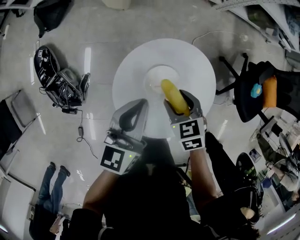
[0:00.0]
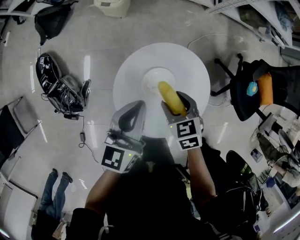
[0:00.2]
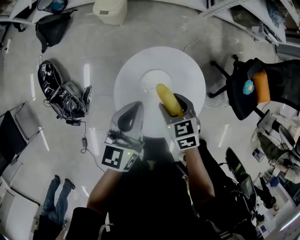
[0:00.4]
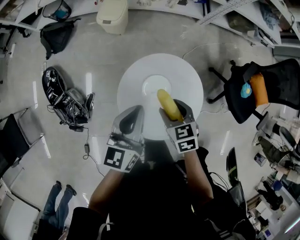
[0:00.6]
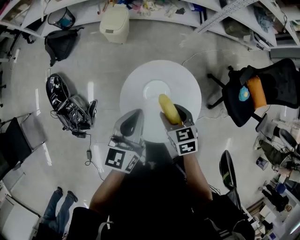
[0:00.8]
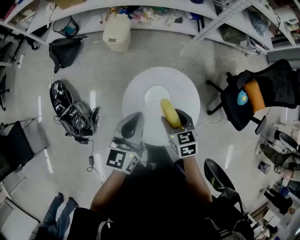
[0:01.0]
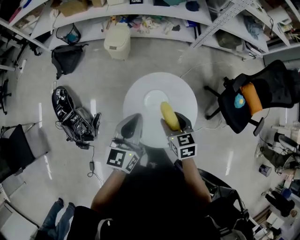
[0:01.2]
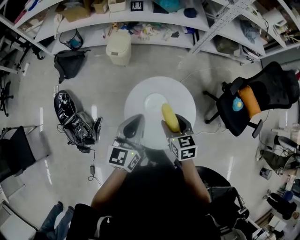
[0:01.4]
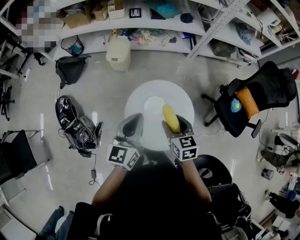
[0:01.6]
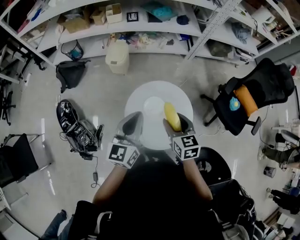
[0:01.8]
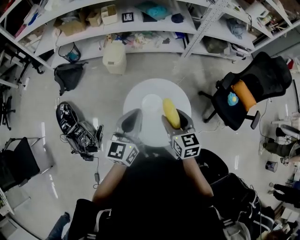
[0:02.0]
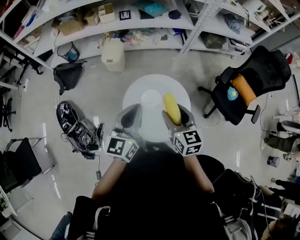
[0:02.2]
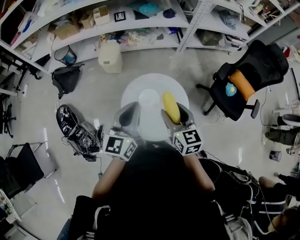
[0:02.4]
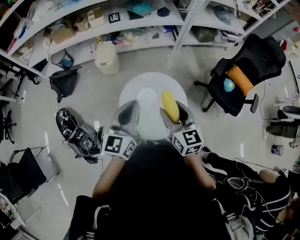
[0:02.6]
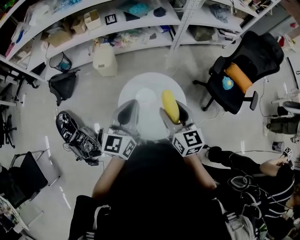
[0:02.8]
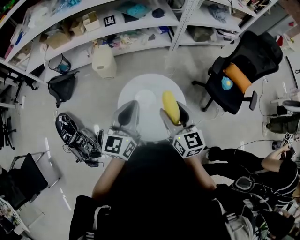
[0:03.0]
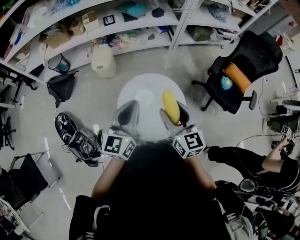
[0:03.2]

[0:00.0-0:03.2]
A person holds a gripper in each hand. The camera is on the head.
0.0 to 1.6 s: The two grippers go roughly 20 cm upward. The right gripper changes its angle by some 30 degrees.
1.6 to 3.2 s: The left gripper goes some 5 cm upward. Meanwhile the right gripper shifts roughly 10 cm upward, and turns by about 30 degrees.

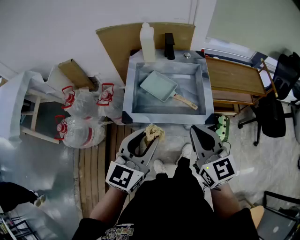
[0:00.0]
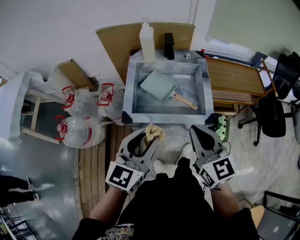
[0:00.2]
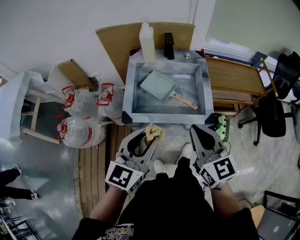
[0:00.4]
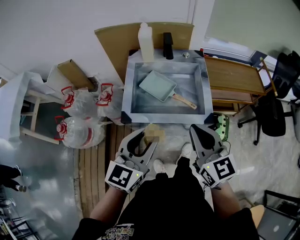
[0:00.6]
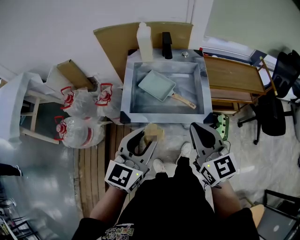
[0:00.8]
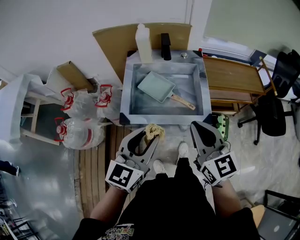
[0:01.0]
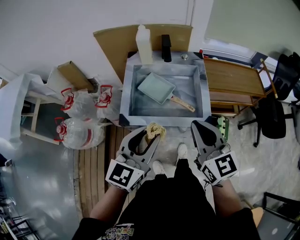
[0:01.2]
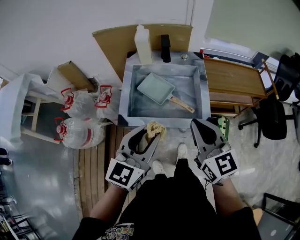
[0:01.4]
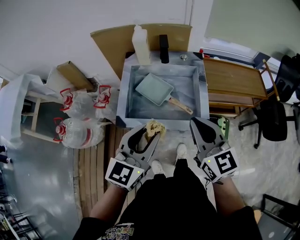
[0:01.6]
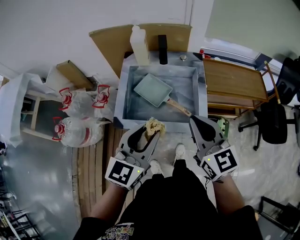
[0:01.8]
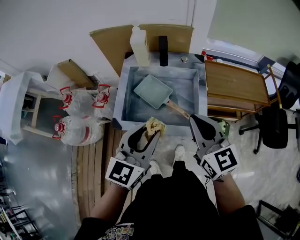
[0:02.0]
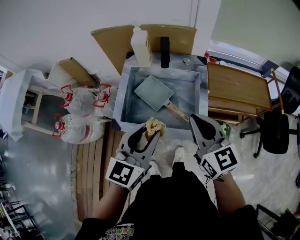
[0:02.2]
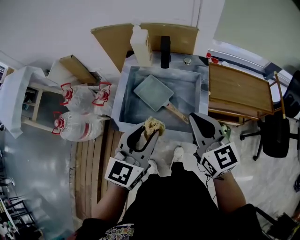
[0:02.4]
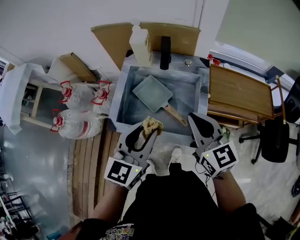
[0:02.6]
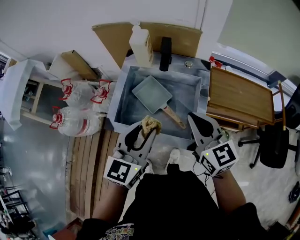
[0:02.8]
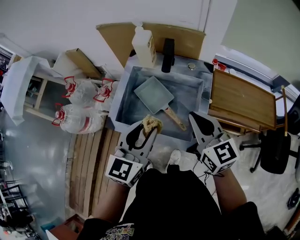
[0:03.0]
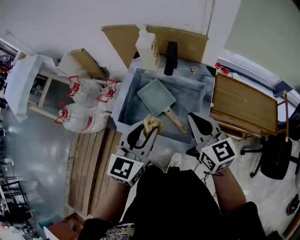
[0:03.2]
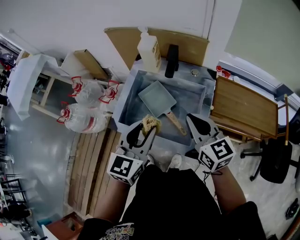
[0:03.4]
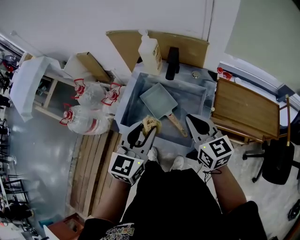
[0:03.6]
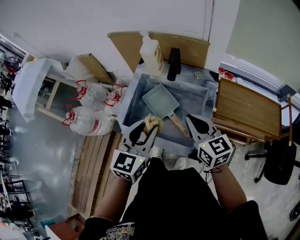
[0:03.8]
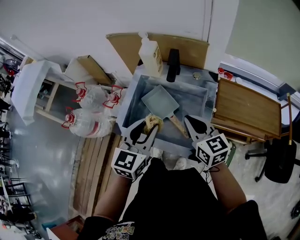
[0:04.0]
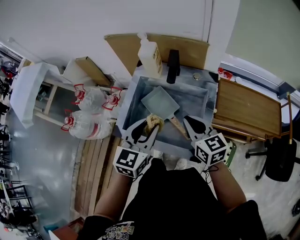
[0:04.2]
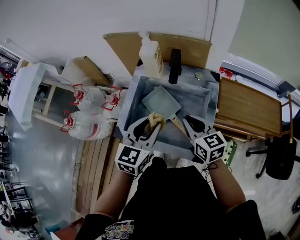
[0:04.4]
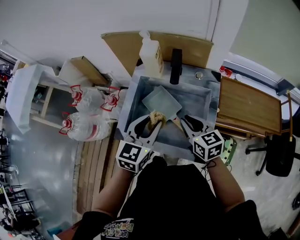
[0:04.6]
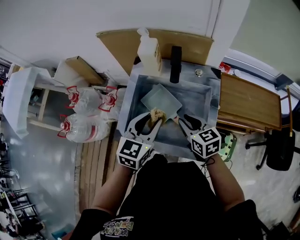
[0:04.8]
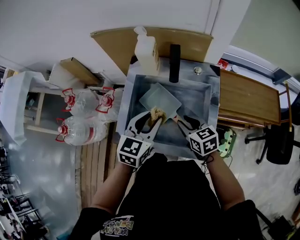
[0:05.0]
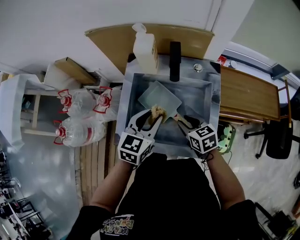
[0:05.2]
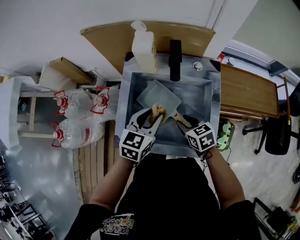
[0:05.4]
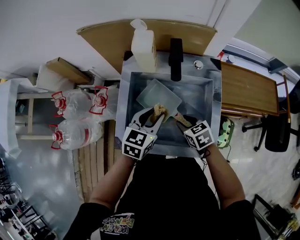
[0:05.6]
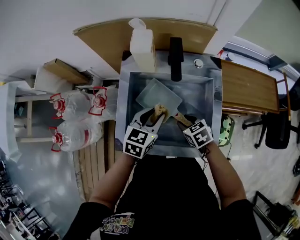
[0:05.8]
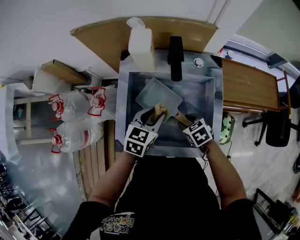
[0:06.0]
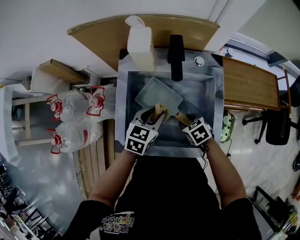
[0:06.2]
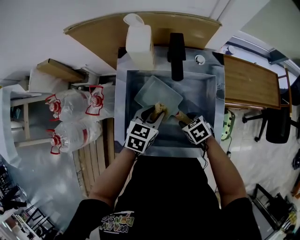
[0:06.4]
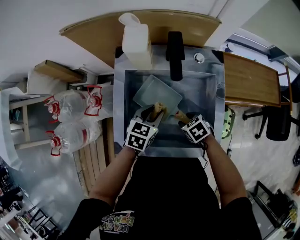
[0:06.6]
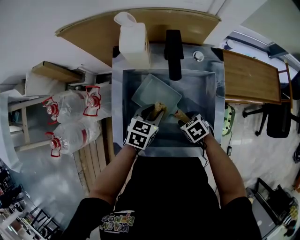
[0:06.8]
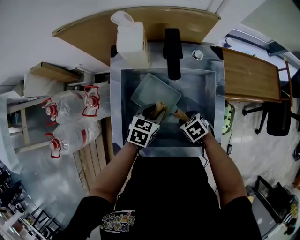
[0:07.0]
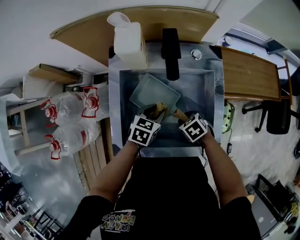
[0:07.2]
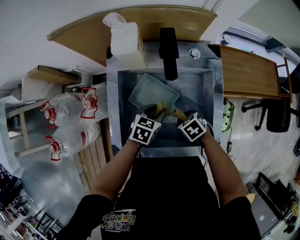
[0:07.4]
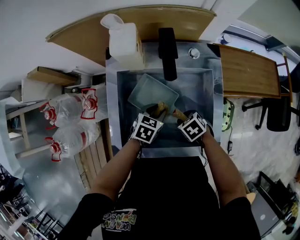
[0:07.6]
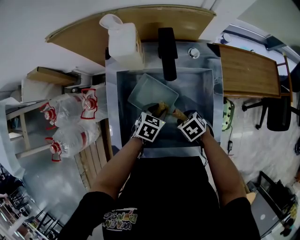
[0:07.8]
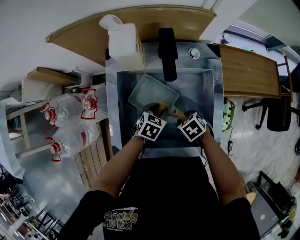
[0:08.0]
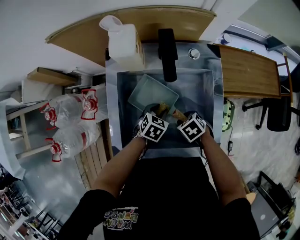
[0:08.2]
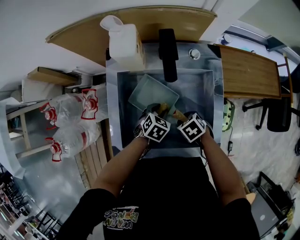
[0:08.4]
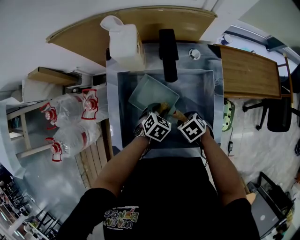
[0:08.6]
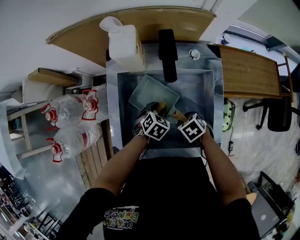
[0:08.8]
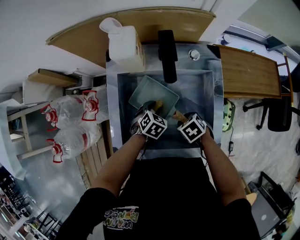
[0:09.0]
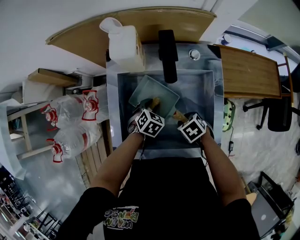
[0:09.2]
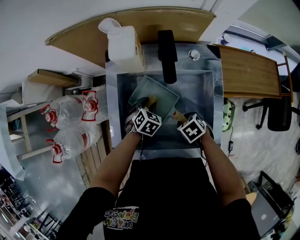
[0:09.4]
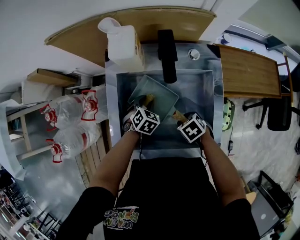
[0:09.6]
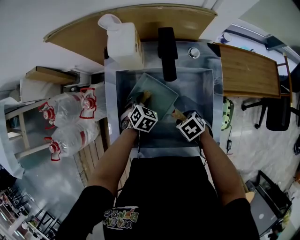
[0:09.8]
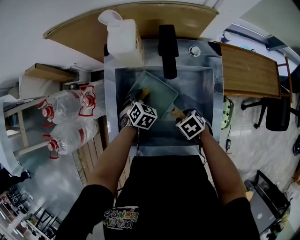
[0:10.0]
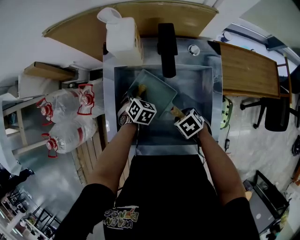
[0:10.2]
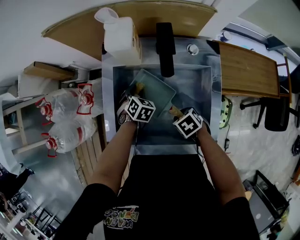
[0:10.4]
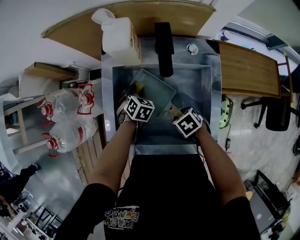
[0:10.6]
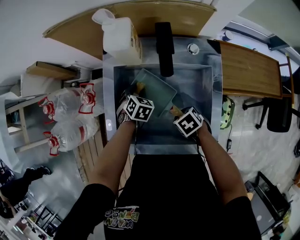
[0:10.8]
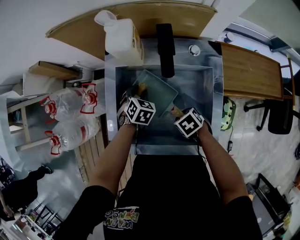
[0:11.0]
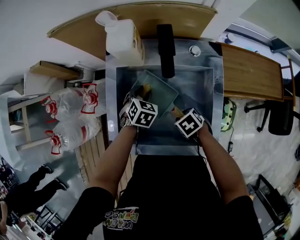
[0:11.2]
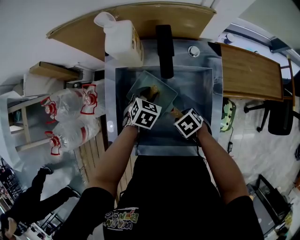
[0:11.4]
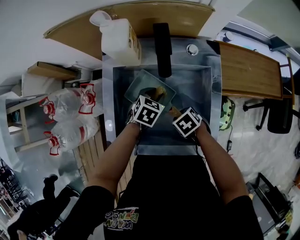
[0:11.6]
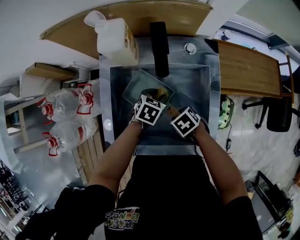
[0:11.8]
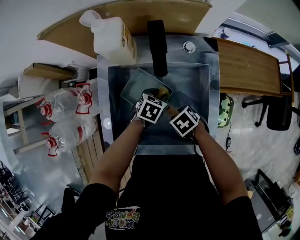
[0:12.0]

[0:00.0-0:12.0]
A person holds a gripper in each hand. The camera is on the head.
0.0 to 1.6 s: The left gripper changes place by about 5 cm; the right gripper moves forward, approximately 5 cm.
1.6 to 3.0 s: The two grippers go some 15 cm forward and to the right.
3.0 to 4.4 s: The right gripper shifts about 10 cm downward and forward; the left gripper travels forward by approximately 5 cm.
4.4 to 6.0 s: The left gripper heads downward and forward, covering approximately 20 cm, and rotates roughly 30 degrees. Meanwhile the right gripper heads downward, covering roughly 20 cm, tips its fingers downward by approximately 40 degrees, and opens its fingers.
6.0 to 7.6 s: The right gripper moves downward, some 5 cm. The left gripper moves downward, approximately 10 cm.
7.6 to 9.0 s: The left gripper rotates some 20 degrees.
9.0 to 10.4 s: The left gripper ends up roughly 10 cm from where it was.
10.4 to 12.0 s: The left gripper shifts by some 15 cm, and changes its angle by about 30 degrees.

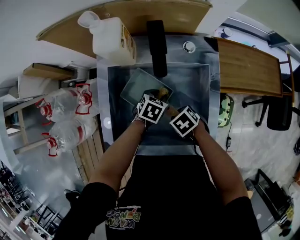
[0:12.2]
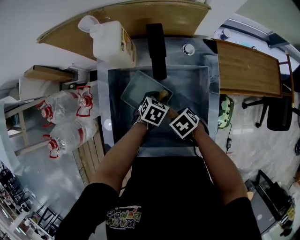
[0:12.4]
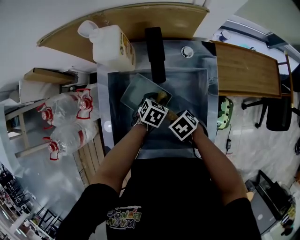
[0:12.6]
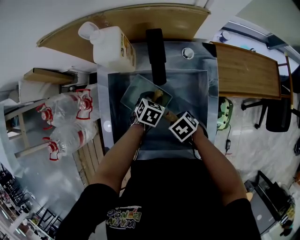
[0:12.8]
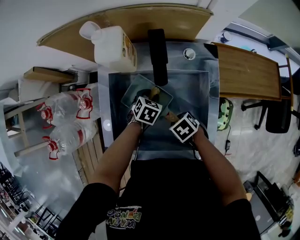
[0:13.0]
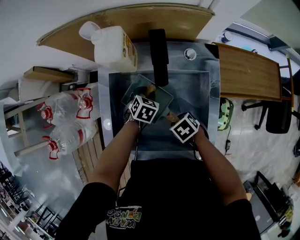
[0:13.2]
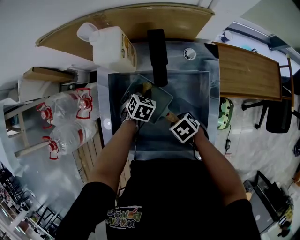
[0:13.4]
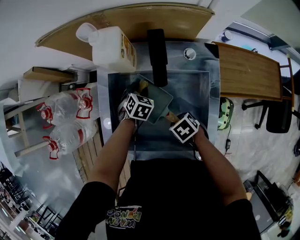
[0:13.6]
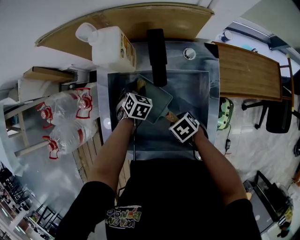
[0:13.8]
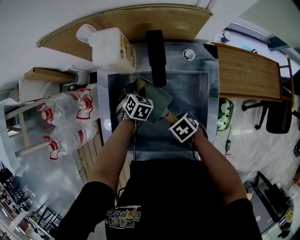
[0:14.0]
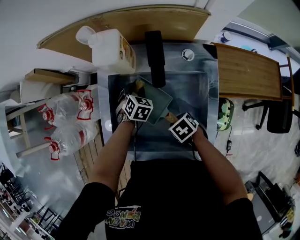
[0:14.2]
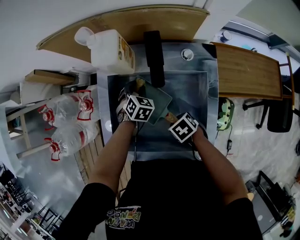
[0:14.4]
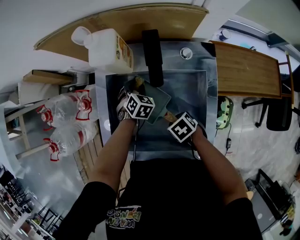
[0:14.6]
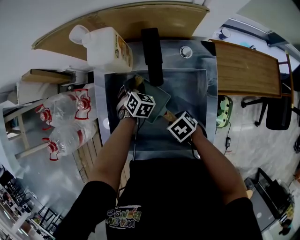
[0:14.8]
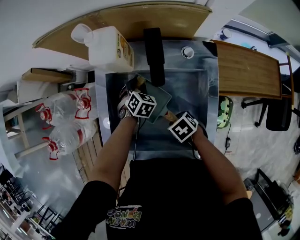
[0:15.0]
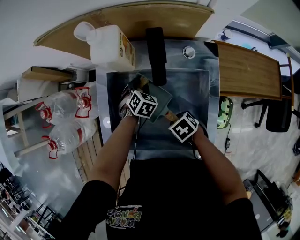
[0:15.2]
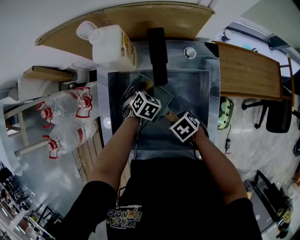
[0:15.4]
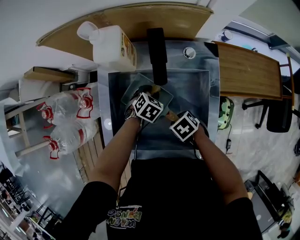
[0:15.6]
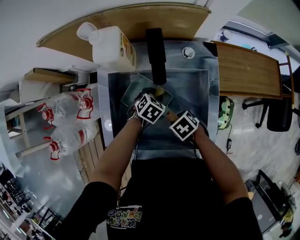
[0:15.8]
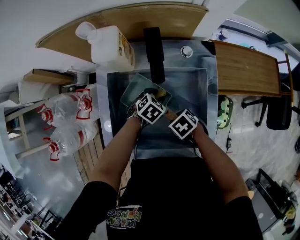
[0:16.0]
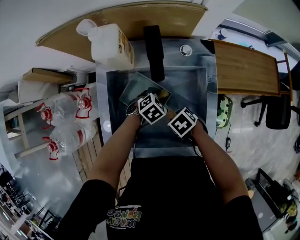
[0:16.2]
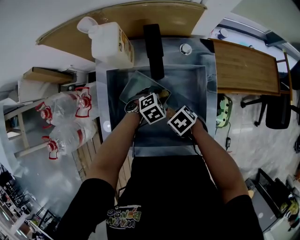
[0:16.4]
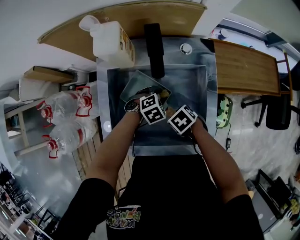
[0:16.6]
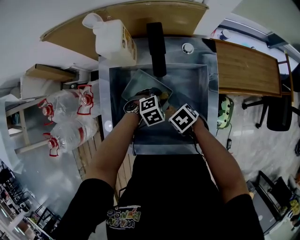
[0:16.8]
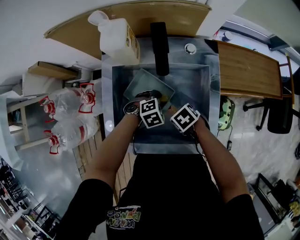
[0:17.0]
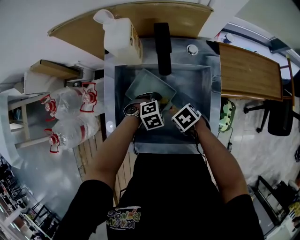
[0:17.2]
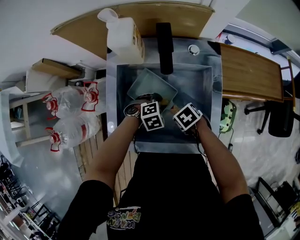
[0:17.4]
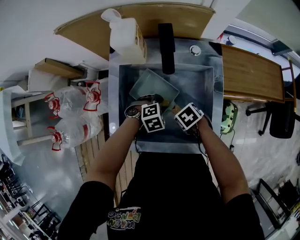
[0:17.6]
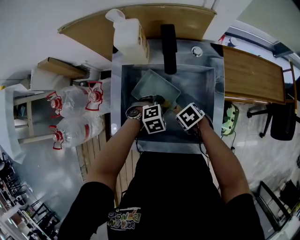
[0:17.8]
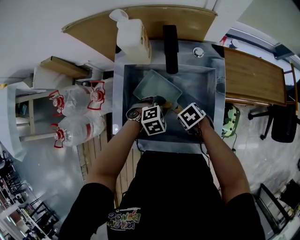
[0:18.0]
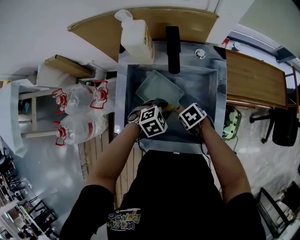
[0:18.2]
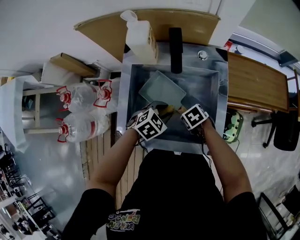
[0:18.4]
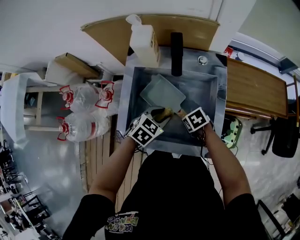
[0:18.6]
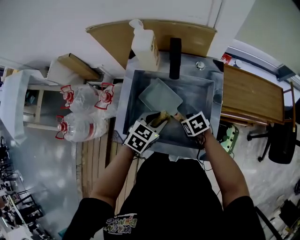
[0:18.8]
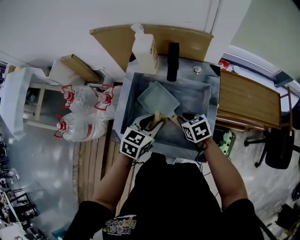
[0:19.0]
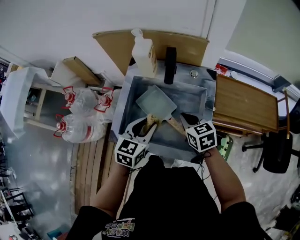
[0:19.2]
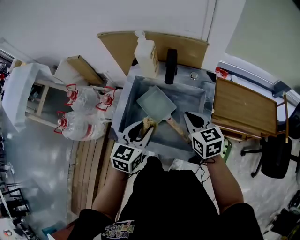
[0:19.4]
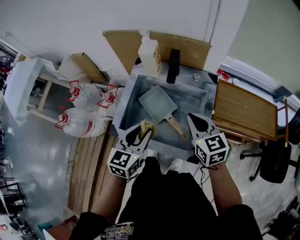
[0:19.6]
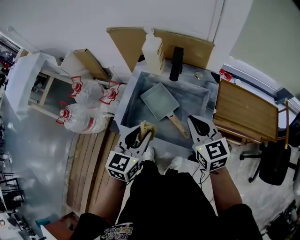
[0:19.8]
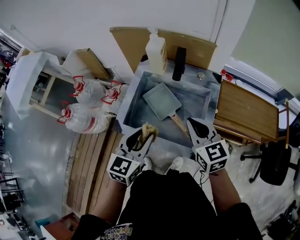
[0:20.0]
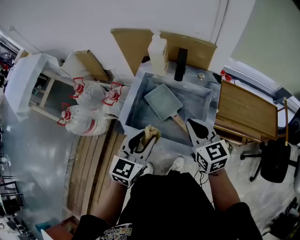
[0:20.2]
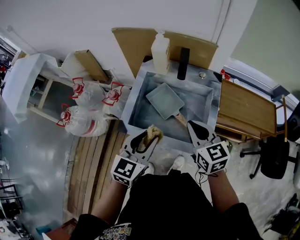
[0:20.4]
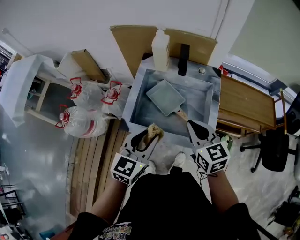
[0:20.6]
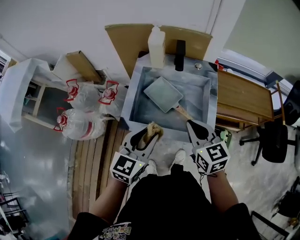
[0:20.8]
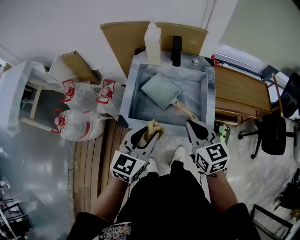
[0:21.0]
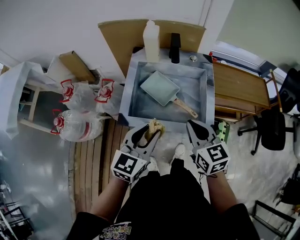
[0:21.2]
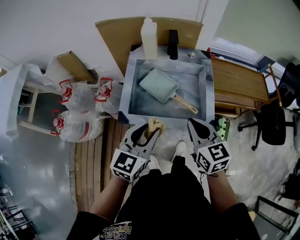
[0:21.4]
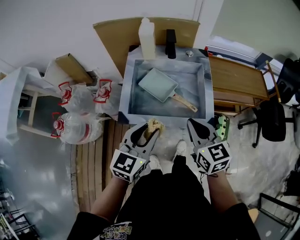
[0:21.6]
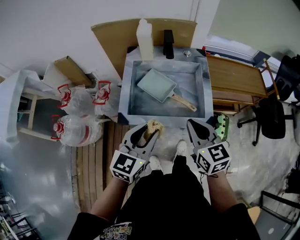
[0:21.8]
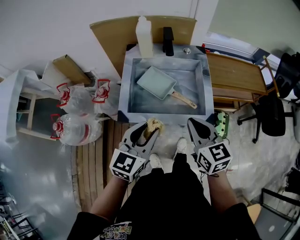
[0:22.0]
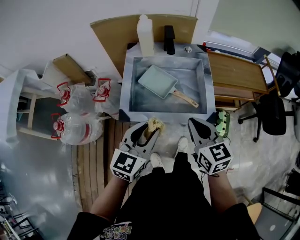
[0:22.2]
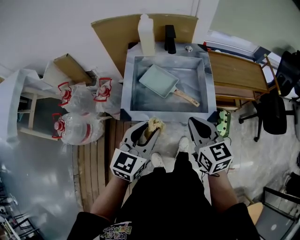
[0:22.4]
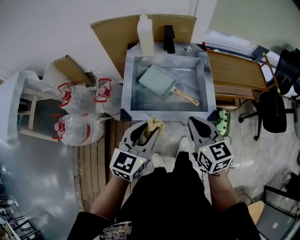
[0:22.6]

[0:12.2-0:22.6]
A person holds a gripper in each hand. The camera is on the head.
12.2 to 13.6 s: The left gripper changes place by about 10 cm, and changes its angle by roughly 20 degrees.
13.6 to 15.2 s: There are only small adjustments of the grippers.
15.2 to 16.6 s: The left gripper ends up some 15 cm from where it was, and turns by about 40 degrees.
16.6 to 18.2 s: The left gripper ends up some 10 cm from where it was.
18.2 to 19.6 s: Both grippers move upward, approximately 25 cm. The left gripper tilts its fingers about 40 degrees upward; the right gripper tilts its fingers approximately 50 degrees upward, and closes its fingers.
19.6 to 21.2 s: The left gripper is displaced backward and to the left by about 10 cm. The right gripper goes approximately 15 cm backward and to the left.
21.2 to 22.6 s: The grippers move only a little.
